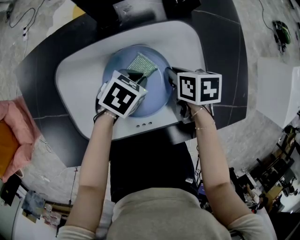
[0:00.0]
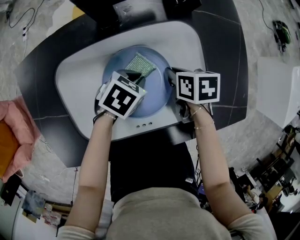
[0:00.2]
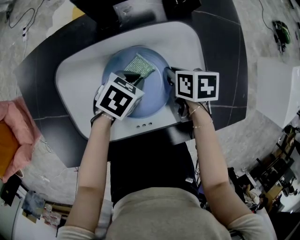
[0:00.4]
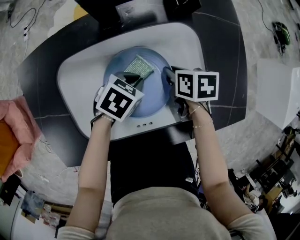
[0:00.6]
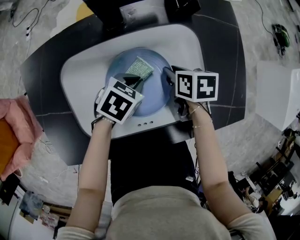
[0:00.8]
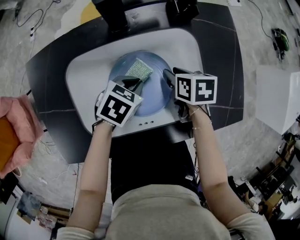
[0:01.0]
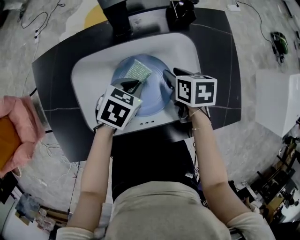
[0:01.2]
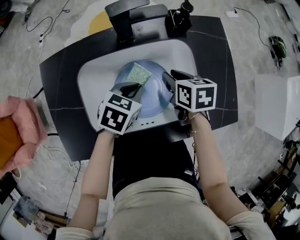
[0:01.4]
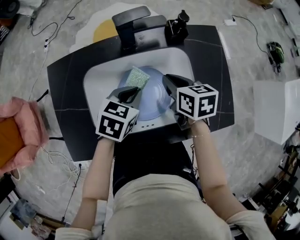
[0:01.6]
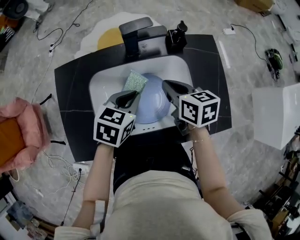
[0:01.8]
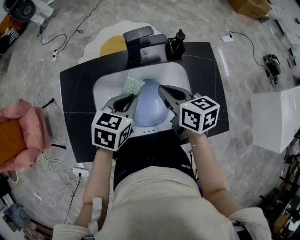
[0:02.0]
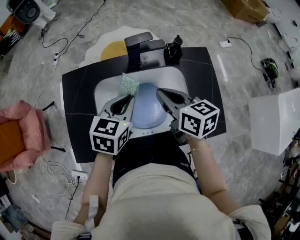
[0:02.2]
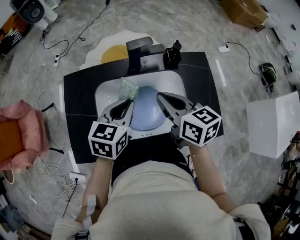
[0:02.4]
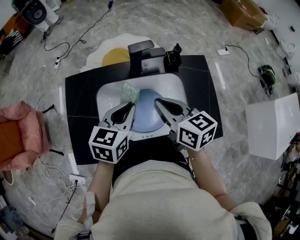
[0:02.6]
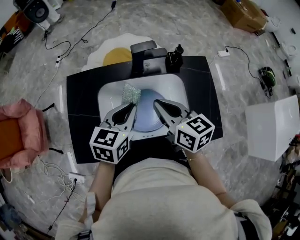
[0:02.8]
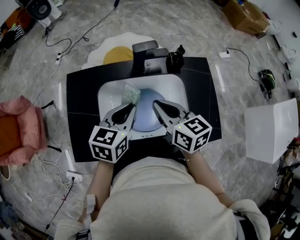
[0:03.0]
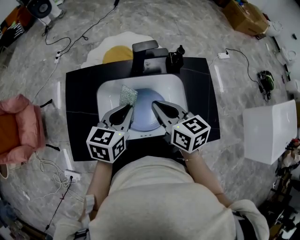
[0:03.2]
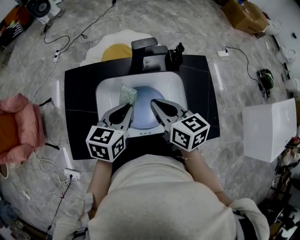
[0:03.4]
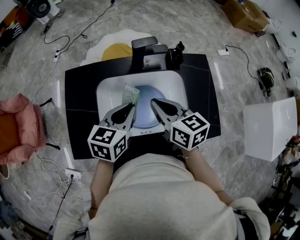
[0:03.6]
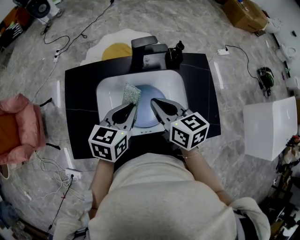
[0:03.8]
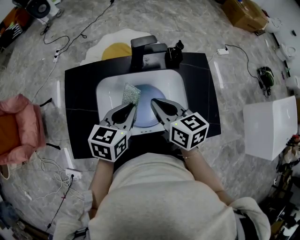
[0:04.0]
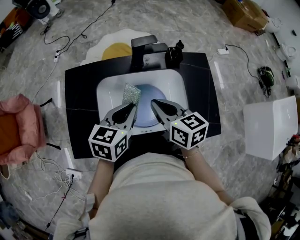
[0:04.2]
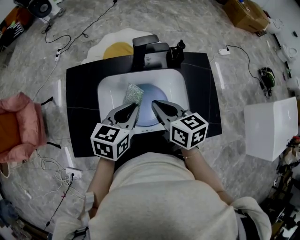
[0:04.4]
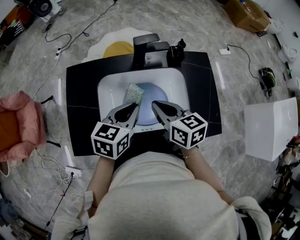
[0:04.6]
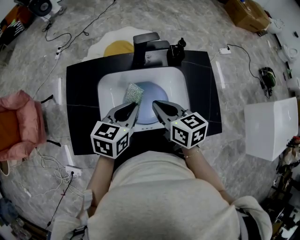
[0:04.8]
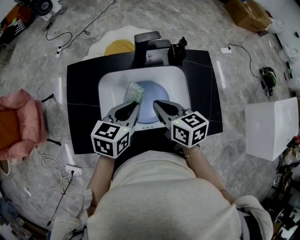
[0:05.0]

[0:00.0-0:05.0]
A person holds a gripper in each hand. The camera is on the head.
0:00.0 to 0:01.6: Both grippers move upward, roughly 15 cm. The right gripper swivels about 20 degrees, and opens, then closes once more, while the left gripper rotates approximately 20 degrees.
0:01.6 to 0:03.4: The right gripper travels upward, to the left and backward by roughly 15 cm, and turns by roughly 20 degrees. The left gripper is displaced upward and to the left by roughly 15 cm, and rotates about 30 degrees.
0:03.4 to 0:05.0: The grippers stay close to where they were, moving slightly.

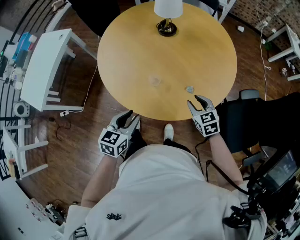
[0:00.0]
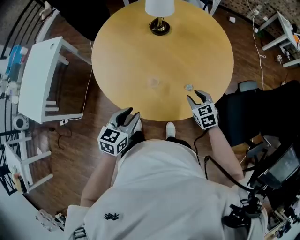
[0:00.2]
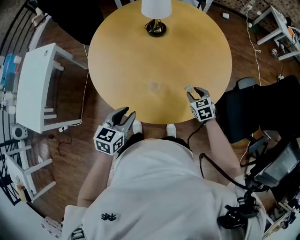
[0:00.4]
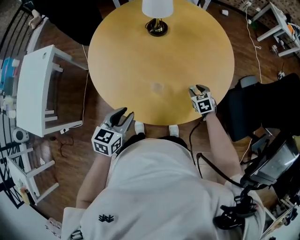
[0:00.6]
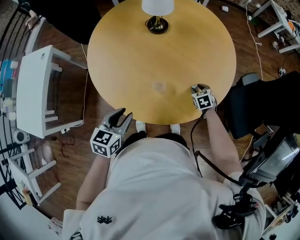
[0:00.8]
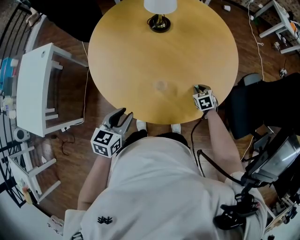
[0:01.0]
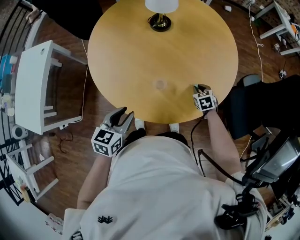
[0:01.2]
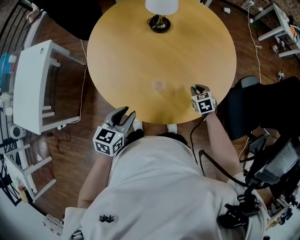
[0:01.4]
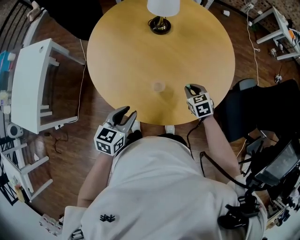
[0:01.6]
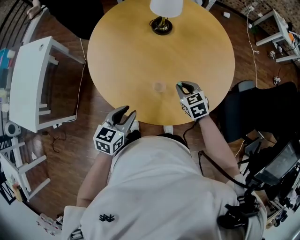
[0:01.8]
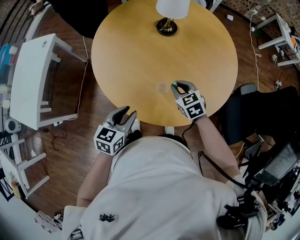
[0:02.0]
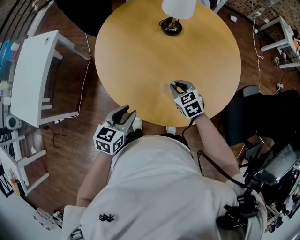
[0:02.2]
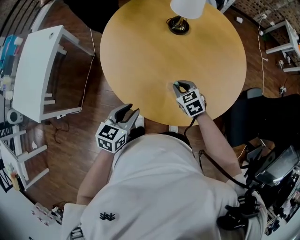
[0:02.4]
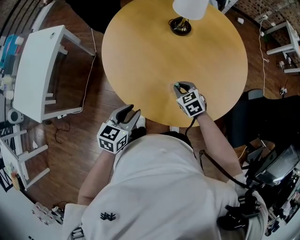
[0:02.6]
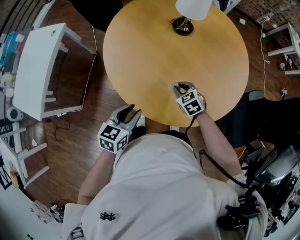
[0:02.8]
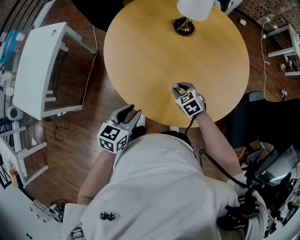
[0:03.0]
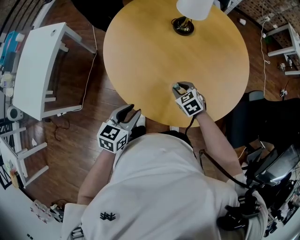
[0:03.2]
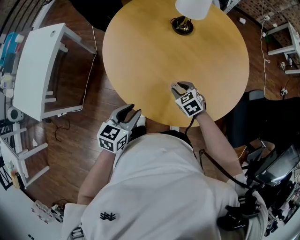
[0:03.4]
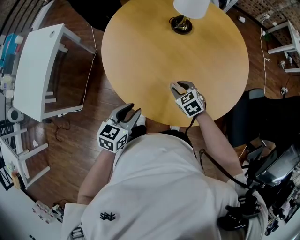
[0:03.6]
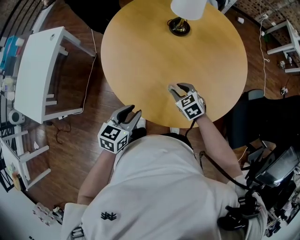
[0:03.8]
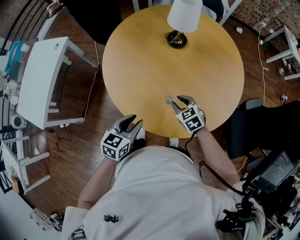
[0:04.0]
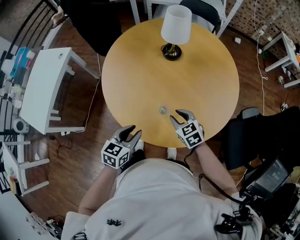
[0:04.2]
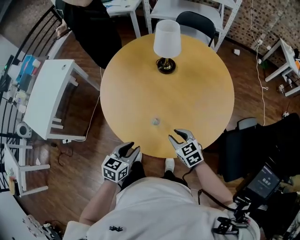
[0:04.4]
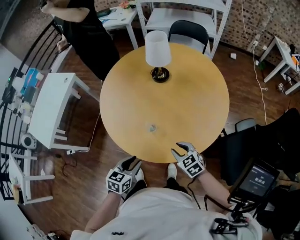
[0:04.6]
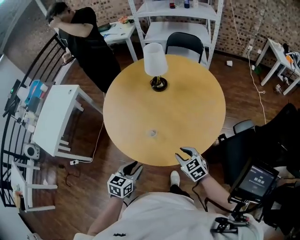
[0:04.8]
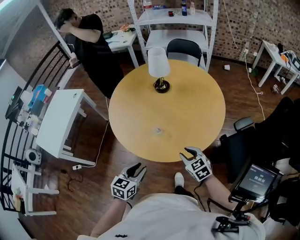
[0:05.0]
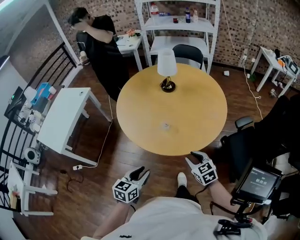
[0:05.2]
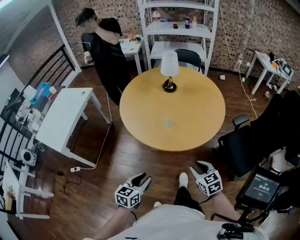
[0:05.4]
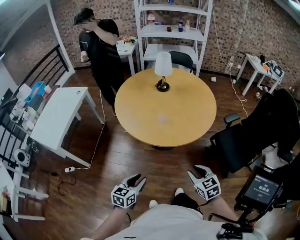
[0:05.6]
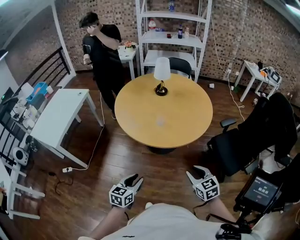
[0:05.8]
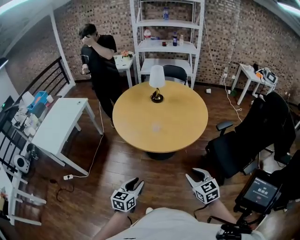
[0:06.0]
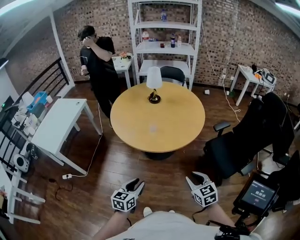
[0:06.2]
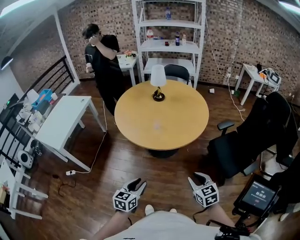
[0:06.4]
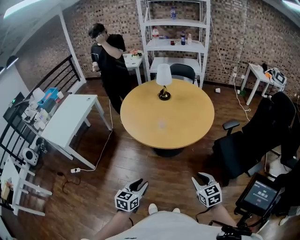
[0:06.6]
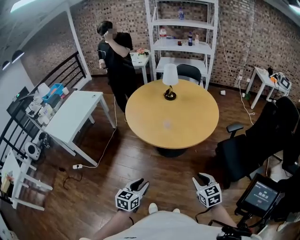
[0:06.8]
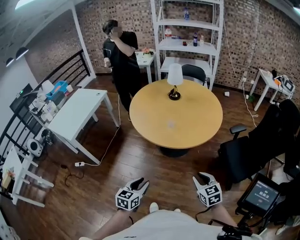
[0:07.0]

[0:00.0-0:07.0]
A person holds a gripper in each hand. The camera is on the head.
0:00.0 to 0:01.4: The right gripper goes some 15 cm downward and forward, and closes up, while the left gripper is displaced to the left and forward by some 10 cm.
0:01.4 to 0:02.8: The right gripper goes approximately 15 cm to the left, and turns by approximately 20 degrees.
0:02.8 to 0:04.2: The right gripper heads upward, covering approximately 5 cm.
0:04.2 to 0:05.6: Both grippers move backward, roughly 40 cm.
0:05.6 to 0:07.0: Both grippers move backward, roughly 10 cm.

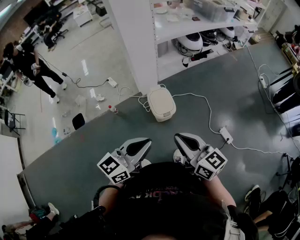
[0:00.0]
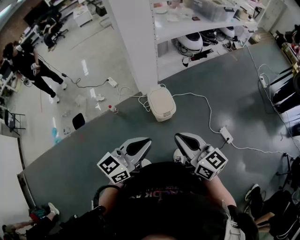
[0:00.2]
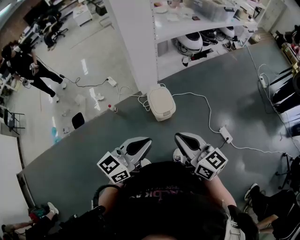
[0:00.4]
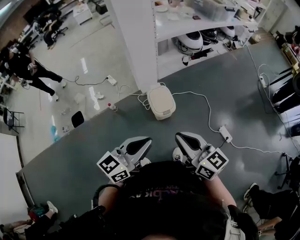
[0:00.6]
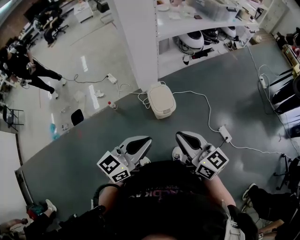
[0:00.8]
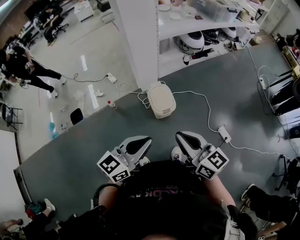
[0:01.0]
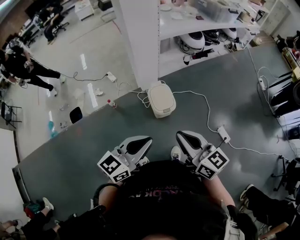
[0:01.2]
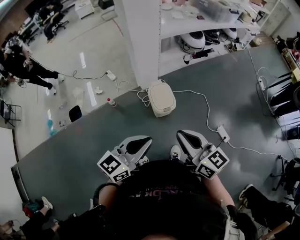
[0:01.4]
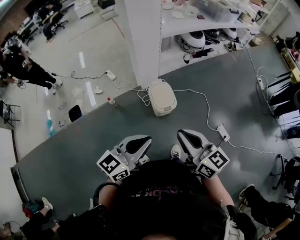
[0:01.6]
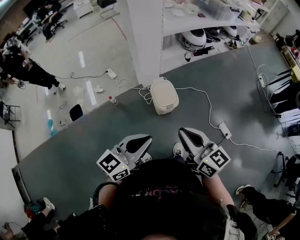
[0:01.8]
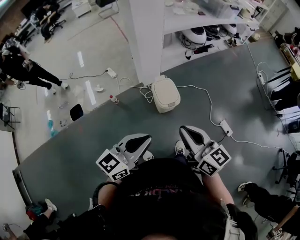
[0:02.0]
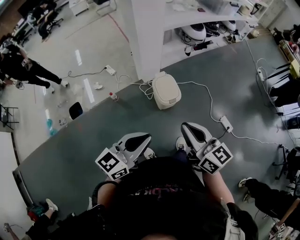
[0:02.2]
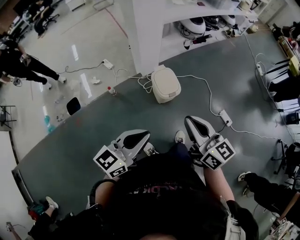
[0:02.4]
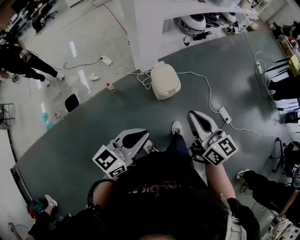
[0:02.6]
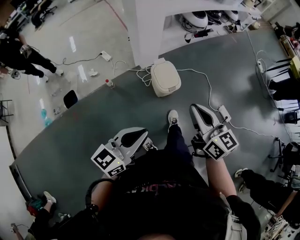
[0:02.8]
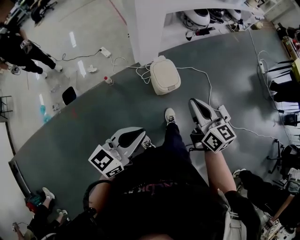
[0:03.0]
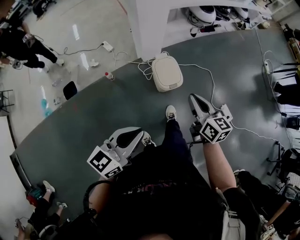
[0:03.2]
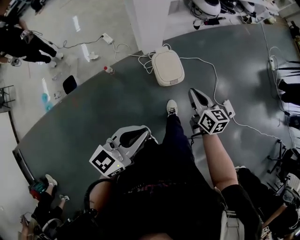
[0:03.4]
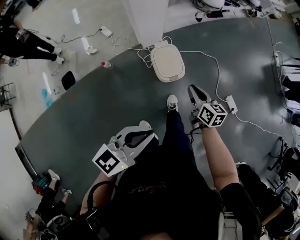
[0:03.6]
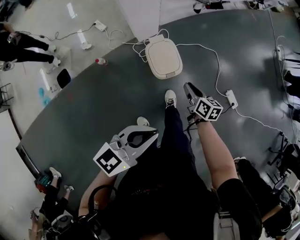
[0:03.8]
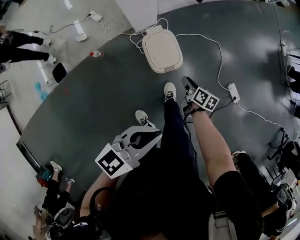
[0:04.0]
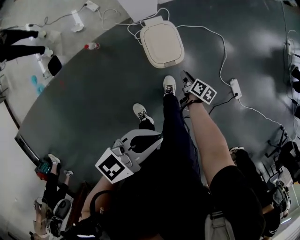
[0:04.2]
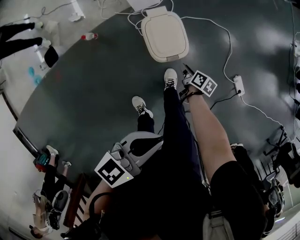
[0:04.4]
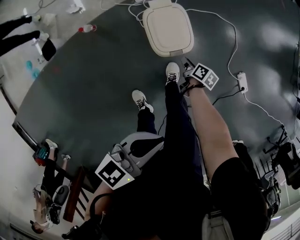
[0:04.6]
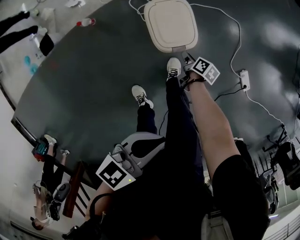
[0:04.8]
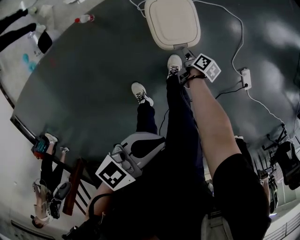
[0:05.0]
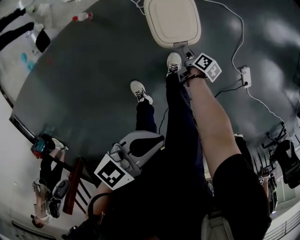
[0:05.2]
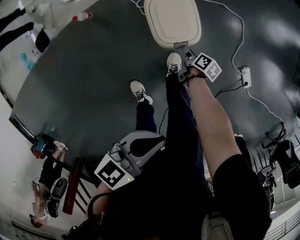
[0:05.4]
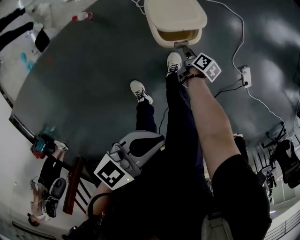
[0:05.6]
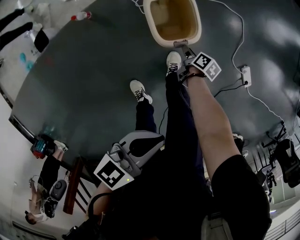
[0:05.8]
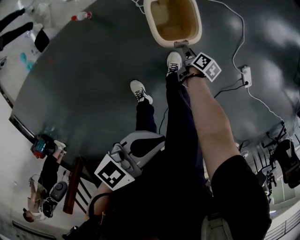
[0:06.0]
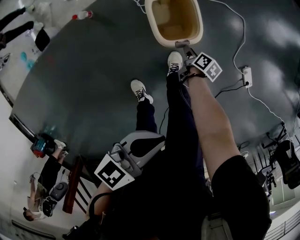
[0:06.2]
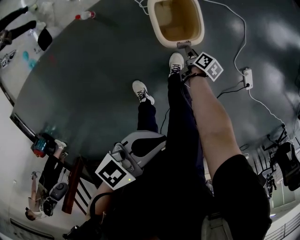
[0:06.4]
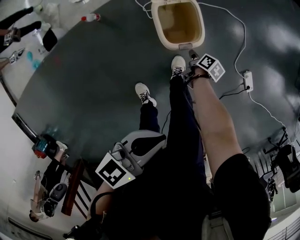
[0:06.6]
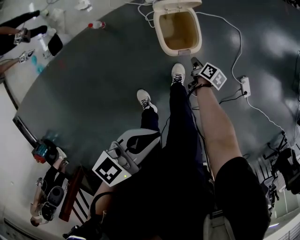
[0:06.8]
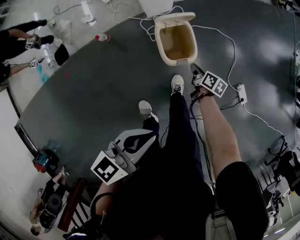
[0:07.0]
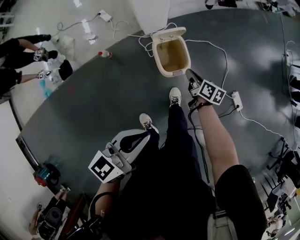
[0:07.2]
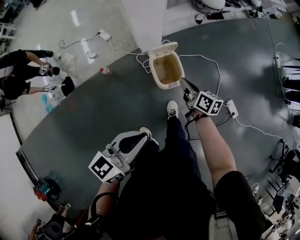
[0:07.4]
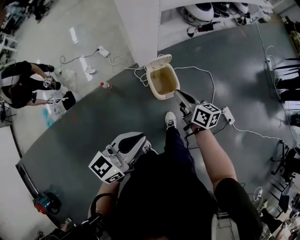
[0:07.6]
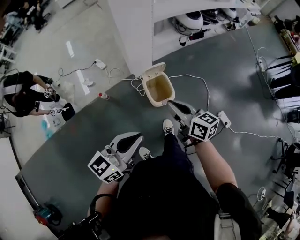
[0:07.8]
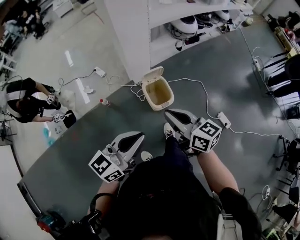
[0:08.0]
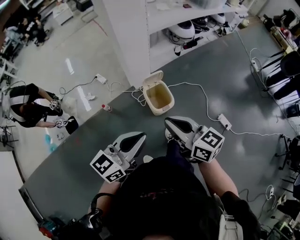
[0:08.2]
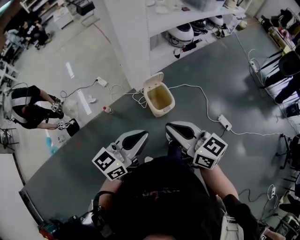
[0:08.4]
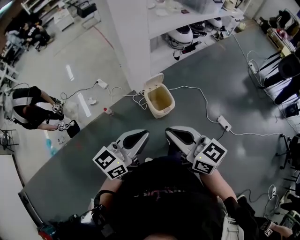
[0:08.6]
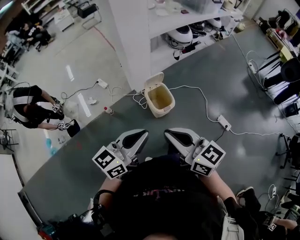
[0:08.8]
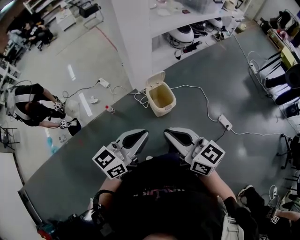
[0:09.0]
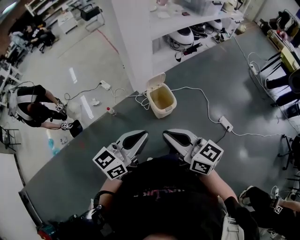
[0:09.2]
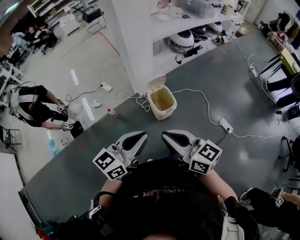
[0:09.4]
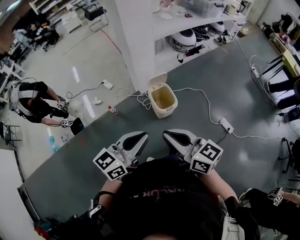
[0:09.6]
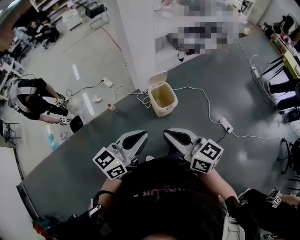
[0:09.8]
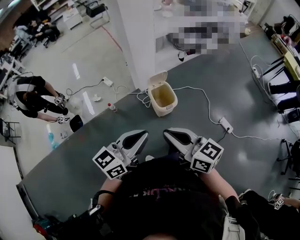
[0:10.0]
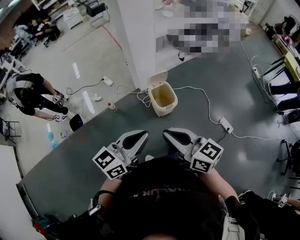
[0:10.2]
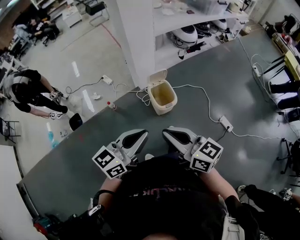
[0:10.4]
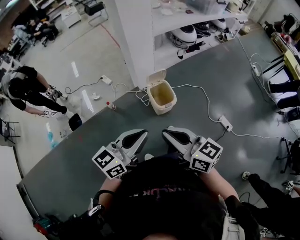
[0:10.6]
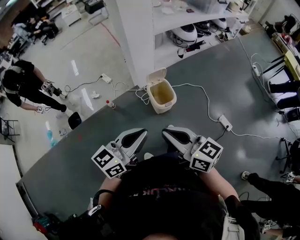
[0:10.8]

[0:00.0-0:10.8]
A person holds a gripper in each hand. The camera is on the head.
0:00.0 to 0:01.6: The grippers move only a little.
0:01.6 to 0:03.0: The left gripper goes roughly 10 cm to the left, while the right gripper travels forward and downward by about 10 cm.
0:03.0 to 0:04.6: The left gripper heads downward, forward and to the right, covering about 30 cm, and rotates roughly 20 degrees; the right gripper shifts about 60 cm downward, tilts its fingers approximately 40 degrees downward, and opens its fingers.
0:04.6 to 0:06.2: The left gripper shifts by approximately 5 cm, while the right gripper heads downward, covering roughly 5 cm.
0:06.2 to 0:07.8: The right gripper travels upward by roughly 60 cm, angles its fingers upward, by about 40 degrees, and closes up. Meanwhile the left gripper moves upward, about 25 cm, and rotates some 30 degrees.
0:07.8 to 0:09.2: The right gripper shifts approximately 25 cm backward and upward; the left gripper shifts some 10 cm backward.
0:09.2 to 0:10.8: The grippers move only a little.

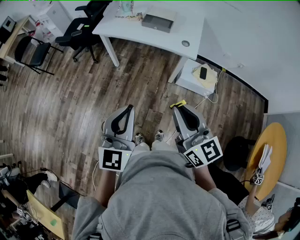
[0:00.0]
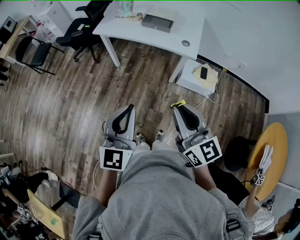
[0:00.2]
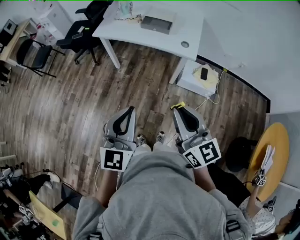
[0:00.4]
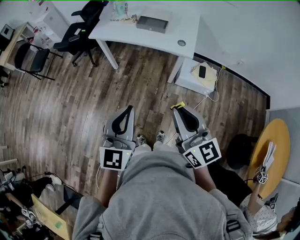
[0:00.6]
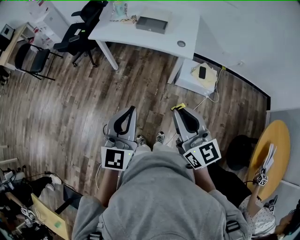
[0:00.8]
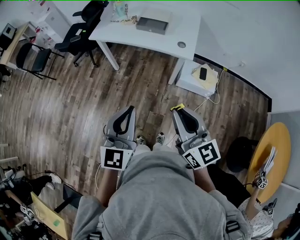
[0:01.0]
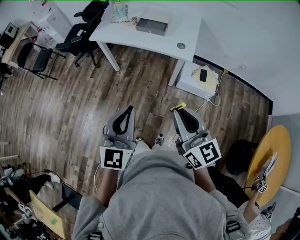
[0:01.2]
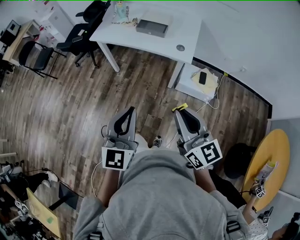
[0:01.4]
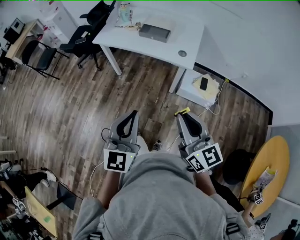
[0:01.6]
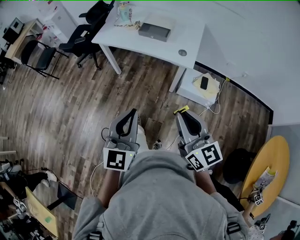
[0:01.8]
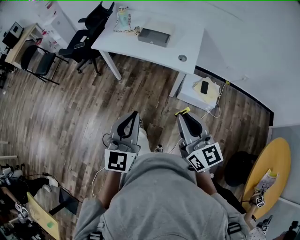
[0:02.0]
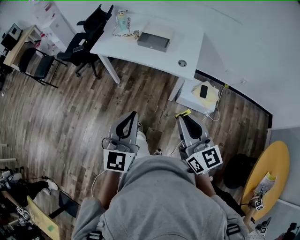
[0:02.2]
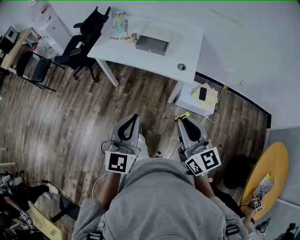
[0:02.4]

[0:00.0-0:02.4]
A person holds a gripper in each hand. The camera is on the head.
0:00.0 to 0:01.2: The grippers both shift to the right by about 5 cm.
0:01.2 to 0:02.4: Both grippers travel together forward, approximately 10 cm.
